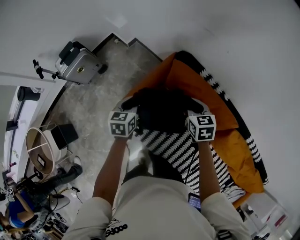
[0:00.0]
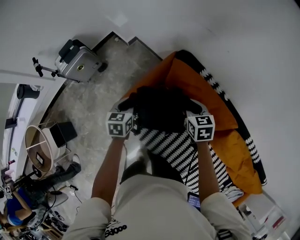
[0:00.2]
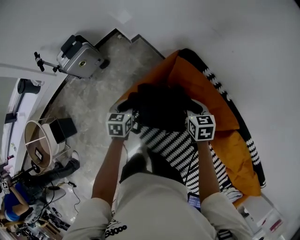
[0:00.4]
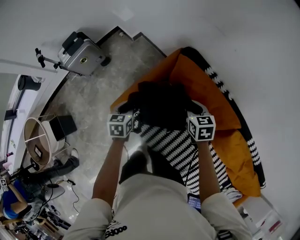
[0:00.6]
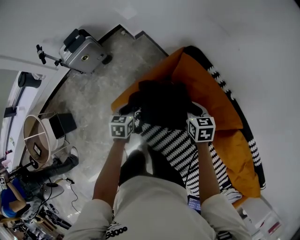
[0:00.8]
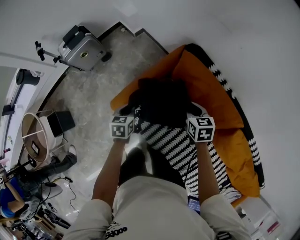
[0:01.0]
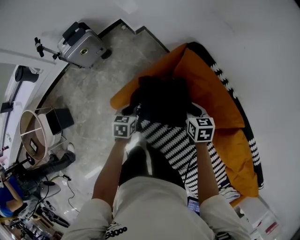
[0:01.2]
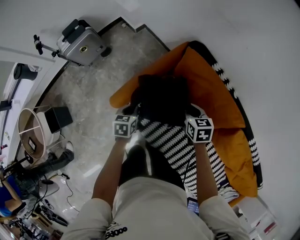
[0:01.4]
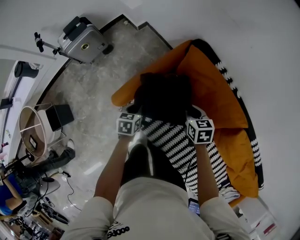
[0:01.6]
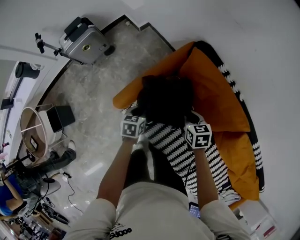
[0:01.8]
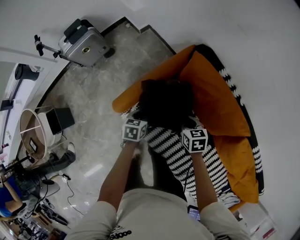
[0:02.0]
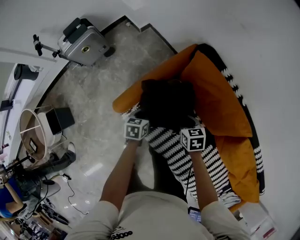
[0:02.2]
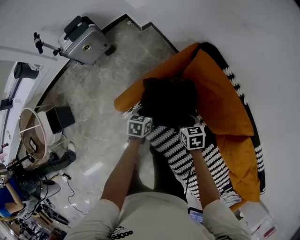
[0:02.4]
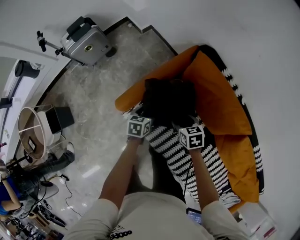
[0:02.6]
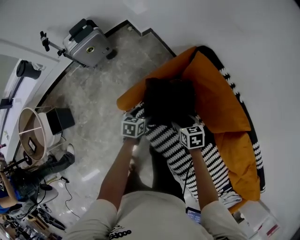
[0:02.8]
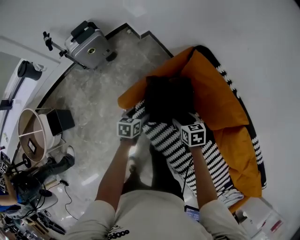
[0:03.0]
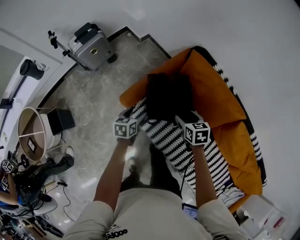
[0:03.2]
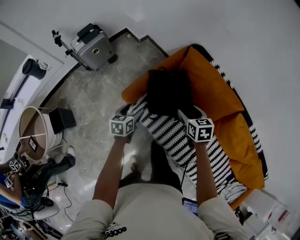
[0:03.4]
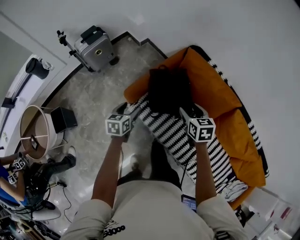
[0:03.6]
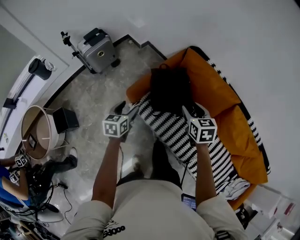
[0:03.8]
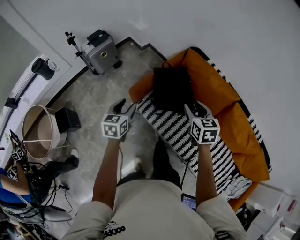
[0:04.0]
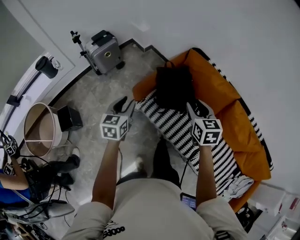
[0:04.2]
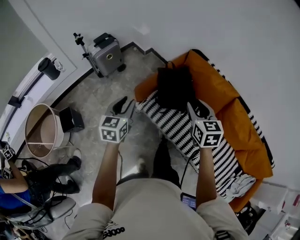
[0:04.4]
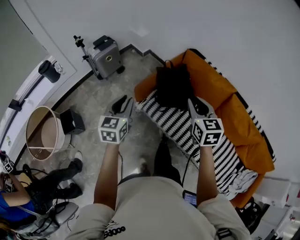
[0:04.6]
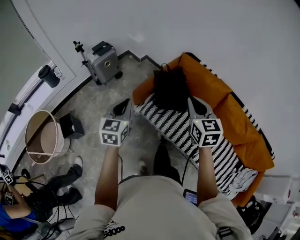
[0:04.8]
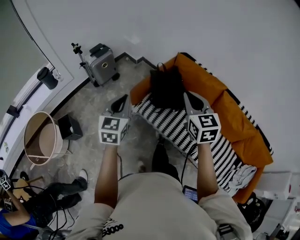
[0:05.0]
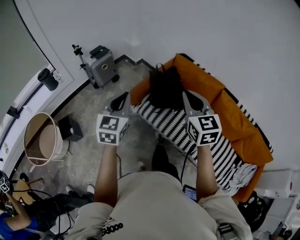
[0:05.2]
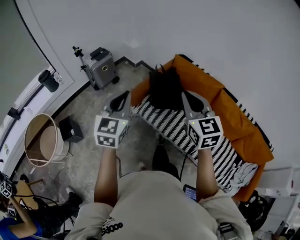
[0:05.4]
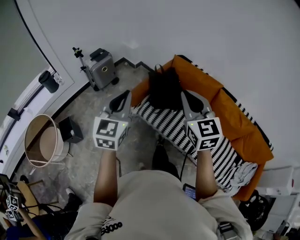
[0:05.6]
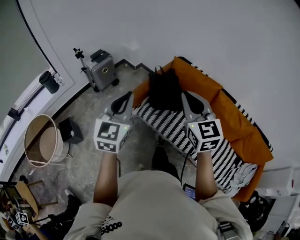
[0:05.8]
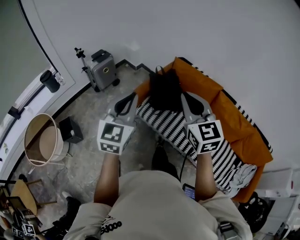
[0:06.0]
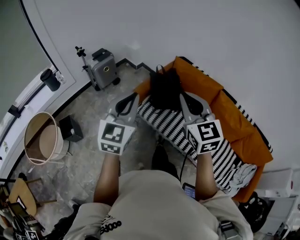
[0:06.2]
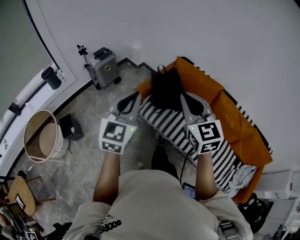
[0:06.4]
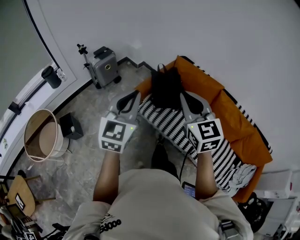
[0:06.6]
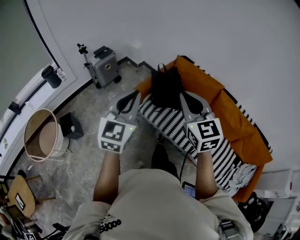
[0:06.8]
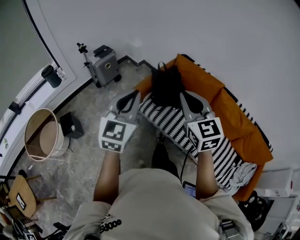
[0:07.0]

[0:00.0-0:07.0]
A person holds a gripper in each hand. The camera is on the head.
0:00.0 to 0:01.4: The left gripper shifts roughly 15 cm downward, backward and to the left. Meanwhile the right gripper goes roughly 10 cm downward and backward.
0:01.4 to 0:02.8: The right gripper heads to the left, backward and downward, covering some 10 cm, and opens up; the left gripper changes place by approximately 5 cm, and opens up.
0:02.8 to 0:04.2: The right gripper travels upward and backward by roughly 35 cm, turns by about 30 degrees, and closes up; the left gripper is displaced upward, backward and to the left by some 40 cm, changes its angle by approximately 30 degrees, and closes.
0:04.2 to 0:05.6: The two grippers go some 25 cm upward and backward. The right gripper rotates about 30 degrees, and closes its fingers. Meanwhile the left gripper turns by roughly 30 degrees, and closes its fingers.
0:05.6 to 0:07.0: The left gripper changes place by about 5 cm.

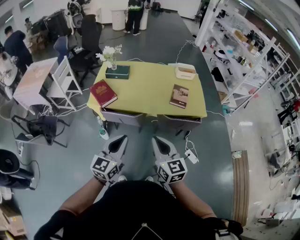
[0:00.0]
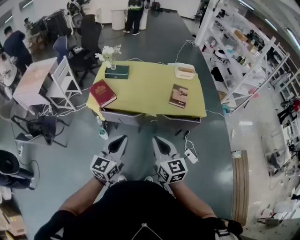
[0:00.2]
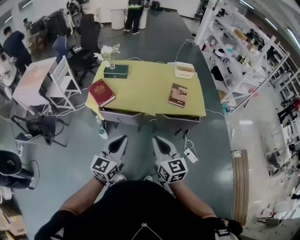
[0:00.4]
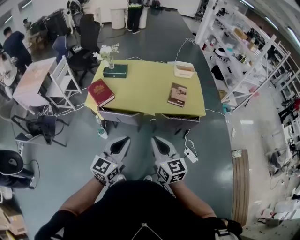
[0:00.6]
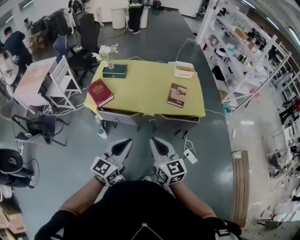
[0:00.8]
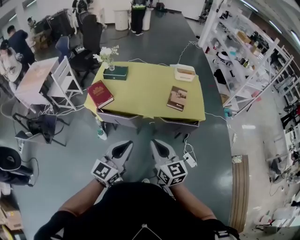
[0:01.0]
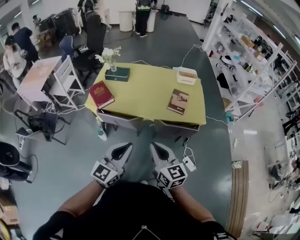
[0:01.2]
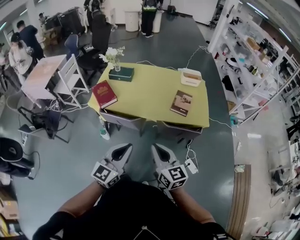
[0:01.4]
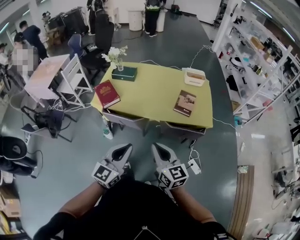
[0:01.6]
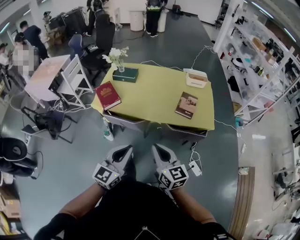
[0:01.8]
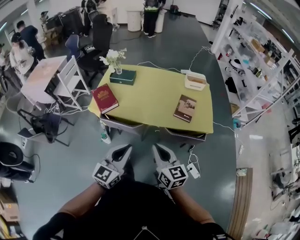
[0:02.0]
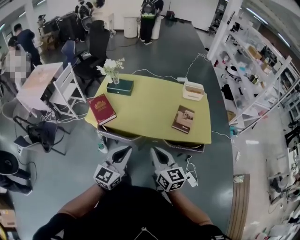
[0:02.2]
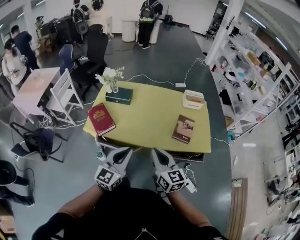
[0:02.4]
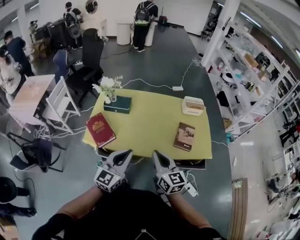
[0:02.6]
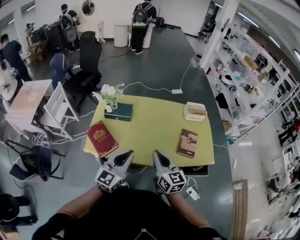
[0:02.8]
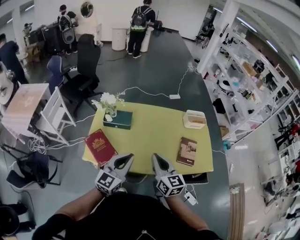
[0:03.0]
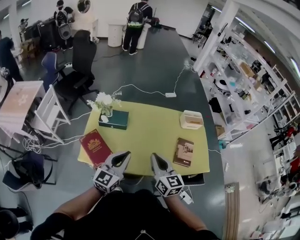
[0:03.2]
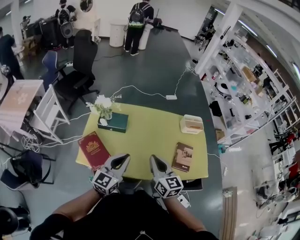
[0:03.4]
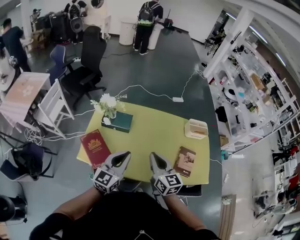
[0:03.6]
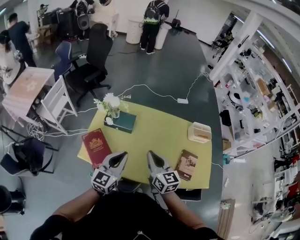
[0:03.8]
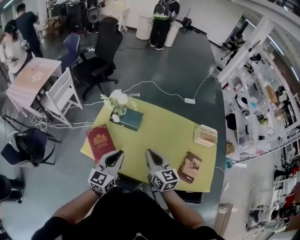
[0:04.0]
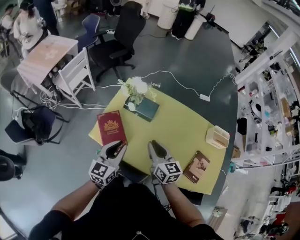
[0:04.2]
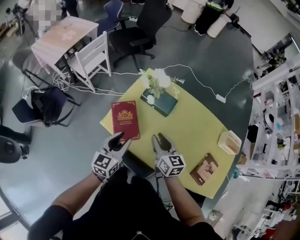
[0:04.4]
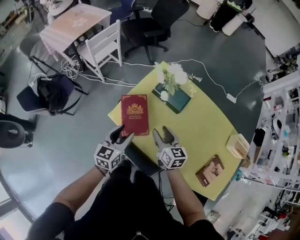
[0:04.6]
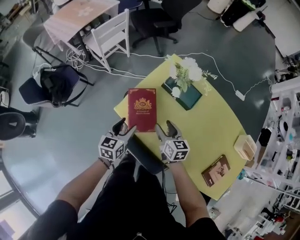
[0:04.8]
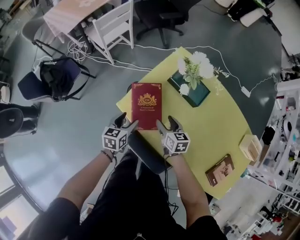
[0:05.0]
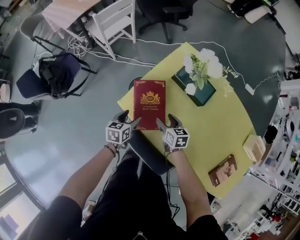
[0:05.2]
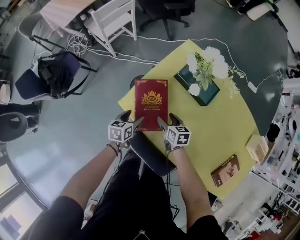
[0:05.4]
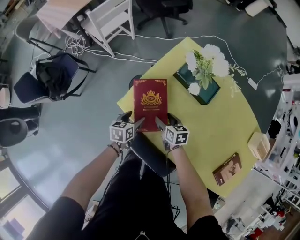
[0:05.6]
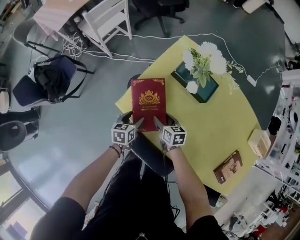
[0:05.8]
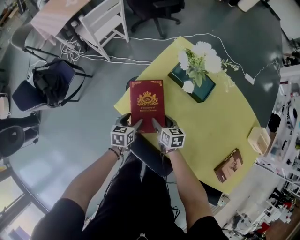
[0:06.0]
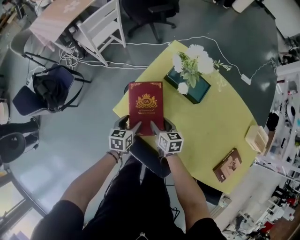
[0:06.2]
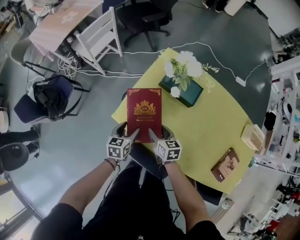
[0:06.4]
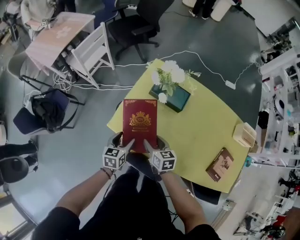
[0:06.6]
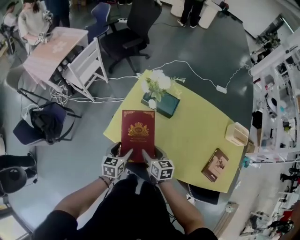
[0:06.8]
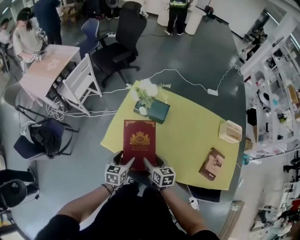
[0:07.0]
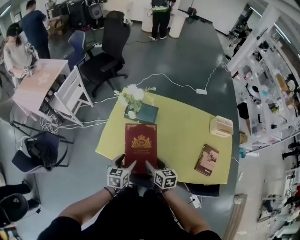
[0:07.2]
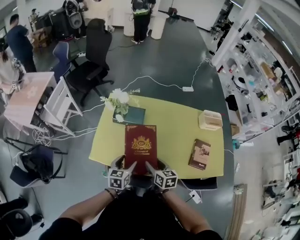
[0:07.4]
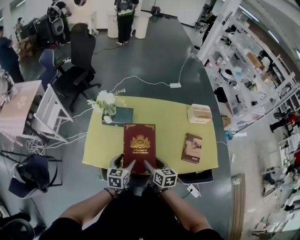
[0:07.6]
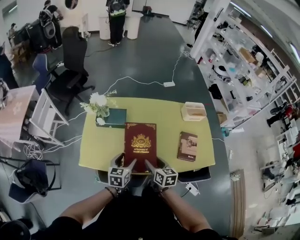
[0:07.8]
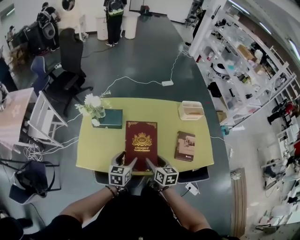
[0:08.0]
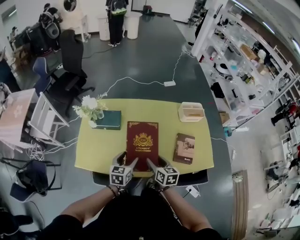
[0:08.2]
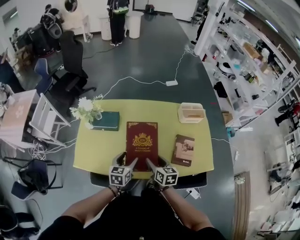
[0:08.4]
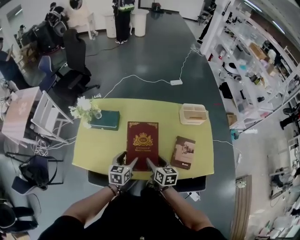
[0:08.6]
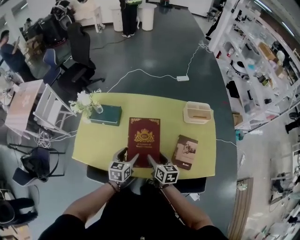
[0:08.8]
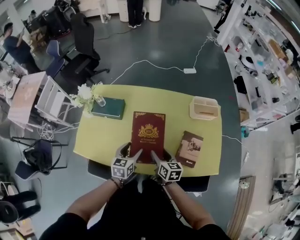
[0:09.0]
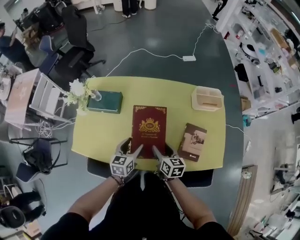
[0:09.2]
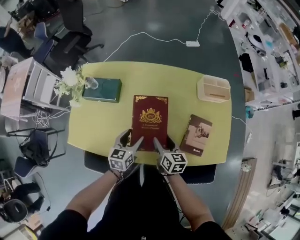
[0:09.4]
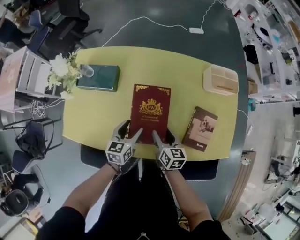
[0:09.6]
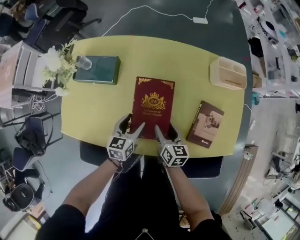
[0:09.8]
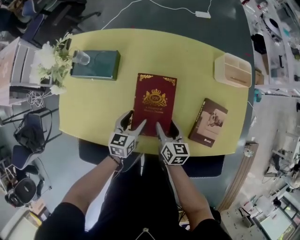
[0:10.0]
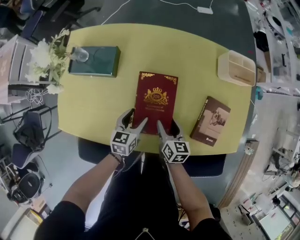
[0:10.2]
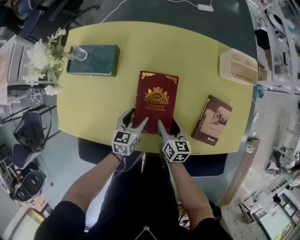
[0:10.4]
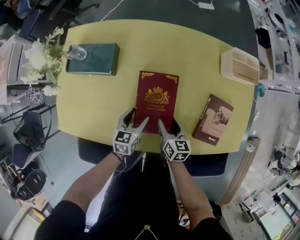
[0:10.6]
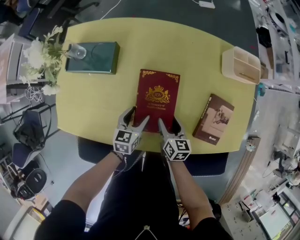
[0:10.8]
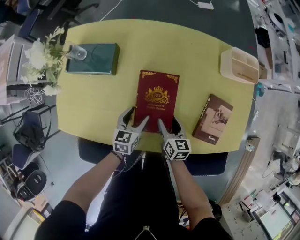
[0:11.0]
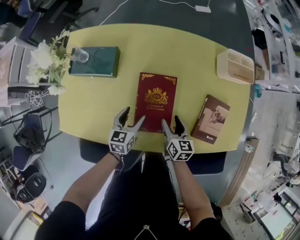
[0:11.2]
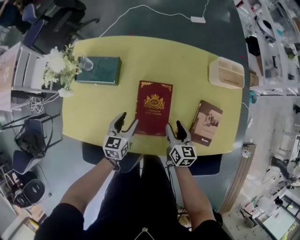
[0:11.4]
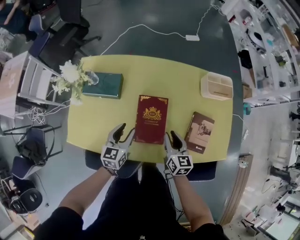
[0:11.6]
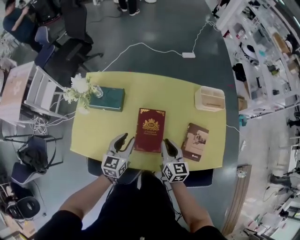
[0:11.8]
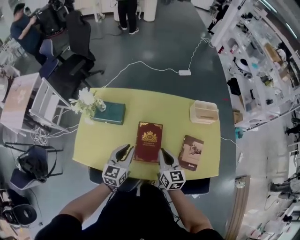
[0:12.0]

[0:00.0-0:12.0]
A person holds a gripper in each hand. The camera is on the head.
0:00.0 to 0:01.6: Both grippers travel together to the right, about 10 cm.
0:01.6 to 0:03.0: Both grippers are carried forward, roughly 40 cm.
0:03.0 to 0:04.4: The left gripper changes place by about 25 cm, changes its angle by roughly 40 degrees, and opens up; the right gripper changes place by about 25 cm, changes its angle by some 30 degrees, and opens up.
0:04.4 to 0:06.0: The grippers both shift downward by about 30 cm. The left gripper turns by roughly 40 degrees, and opens its fingers; the right gripper swivels about 30 degrees, and opens its fingers.
0:06.0 to 0:07.6: The left gripper goes some 25 cm upward, and rotates some 40 degrees. The right gripper moves about 35 cm, and changes its angle by approximately 40 degrees.
0:07.6 to 0:09.0: The grippers both shift to the right and forward by some 20 cm.
0:09.0 to 0:10.4: Both grippers move downward, approximately 20 cm.
0:10.4 to 0:12.0: Both grippers move upward, approximately 25 cm. The left gripper turns by approximately 20 degrees, and closes. Meanwhile the right gripper changes its angle by some 20 degrees, and closes.

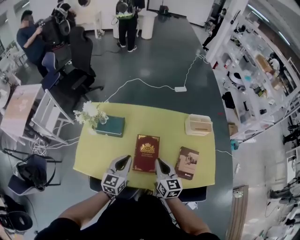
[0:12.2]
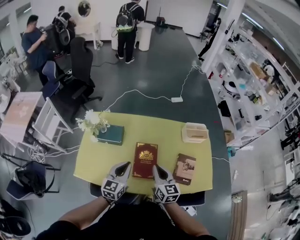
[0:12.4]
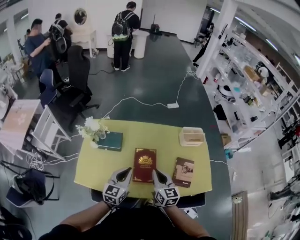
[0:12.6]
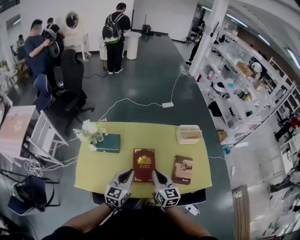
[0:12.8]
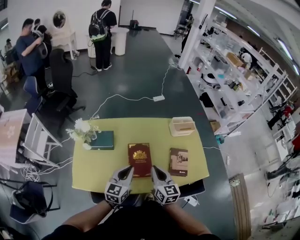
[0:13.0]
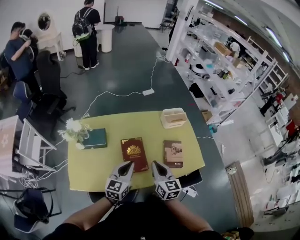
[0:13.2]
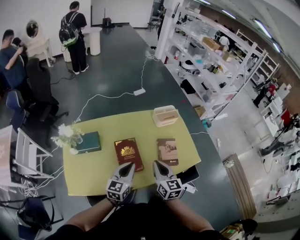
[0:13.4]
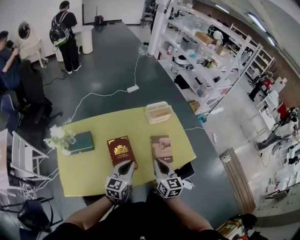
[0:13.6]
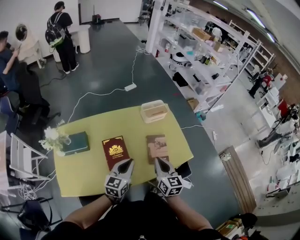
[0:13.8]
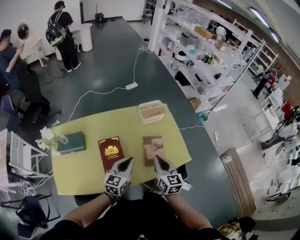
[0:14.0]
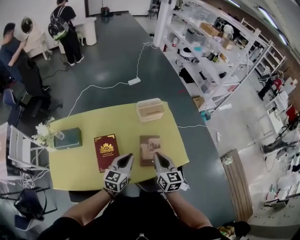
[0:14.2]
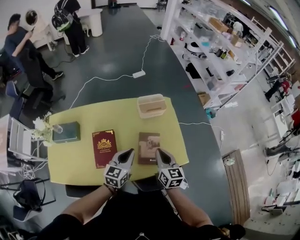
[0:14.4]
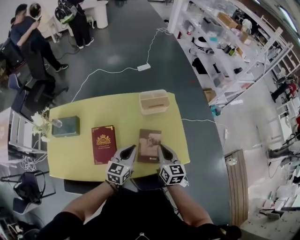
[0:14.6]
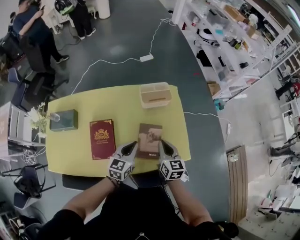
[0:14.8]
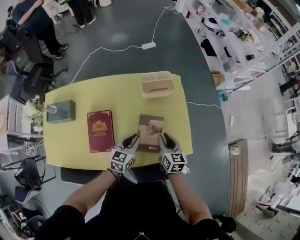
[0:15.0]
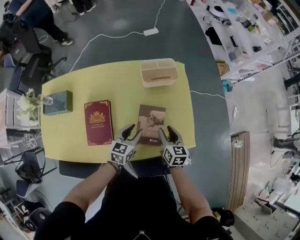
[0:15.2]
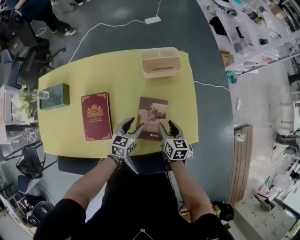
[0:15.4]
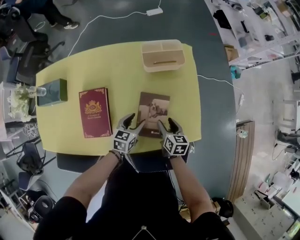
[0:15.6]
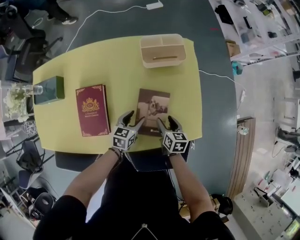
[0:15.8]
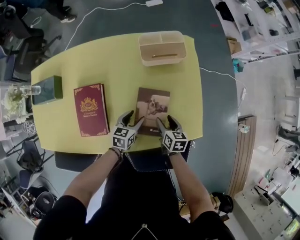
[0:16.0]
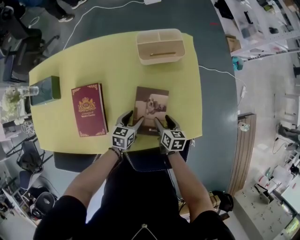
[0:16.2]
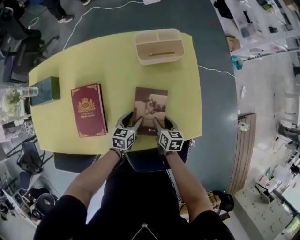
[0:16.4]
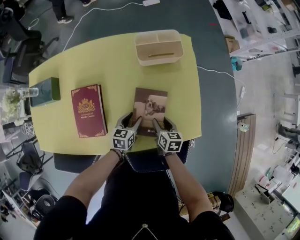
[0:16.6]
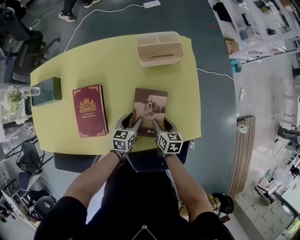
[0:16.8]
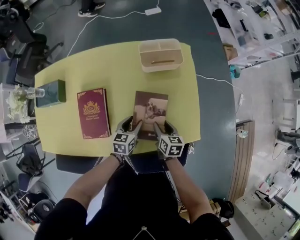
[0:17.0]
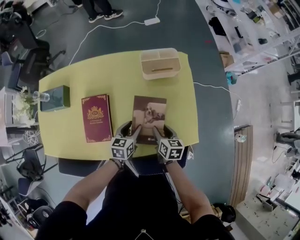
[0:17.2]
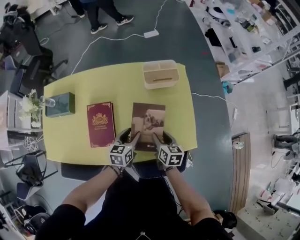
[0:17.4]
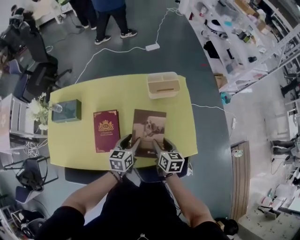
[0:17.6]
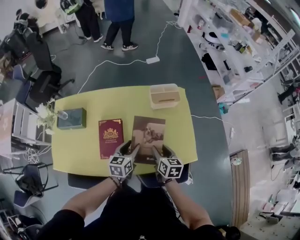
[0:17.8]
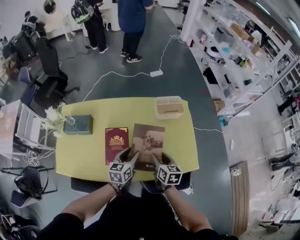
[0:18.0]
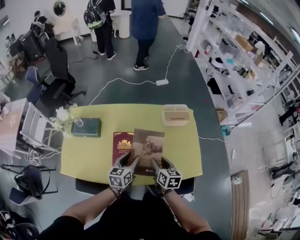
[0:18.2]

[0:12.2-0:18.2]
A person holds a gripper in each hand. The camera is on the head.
0:12.2 to 0:13.8: The left gripper ends up approximately 20 cm from where it was, and rotates some 30 degrees. Meanwhile the right gripper ends up some 20 cm from where it was, and rotates some 20 degrees.
0:13.8 to 0:15.2: The right gripper shifts approximately 35 cm downward, forward and to the right, changes its angle by some 20 degrees, and opens, while the left gripper travels downward, to the right and forward by approximately 30 cm, changes its angle by approximately 20 degrees, and opens its fingers.
0:15.2 to 0:16.6: Both grippers travel together downward, about 15 cm.
0:16.6 to 0:18.2: Both grippers travel together upward and to the left, about 35 cm.
